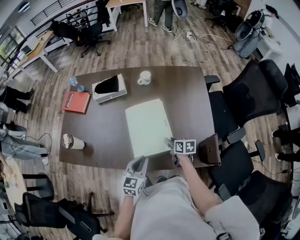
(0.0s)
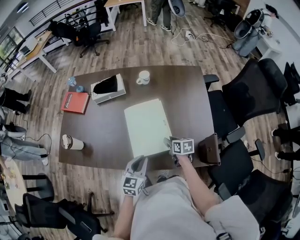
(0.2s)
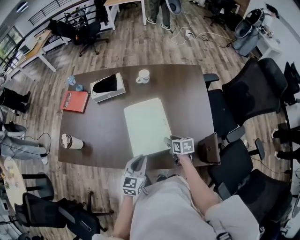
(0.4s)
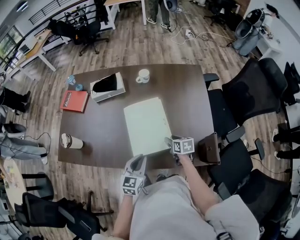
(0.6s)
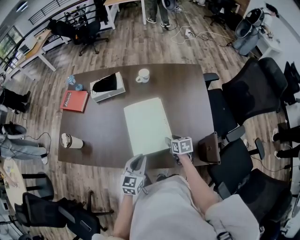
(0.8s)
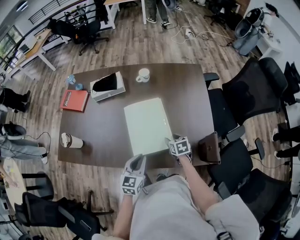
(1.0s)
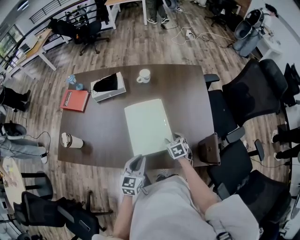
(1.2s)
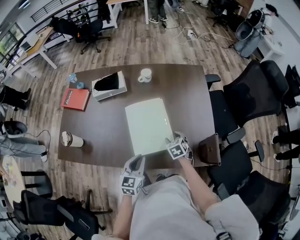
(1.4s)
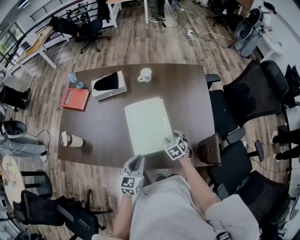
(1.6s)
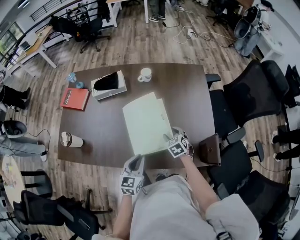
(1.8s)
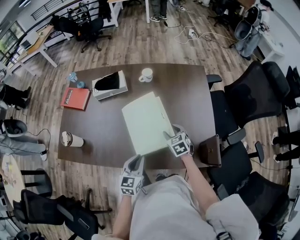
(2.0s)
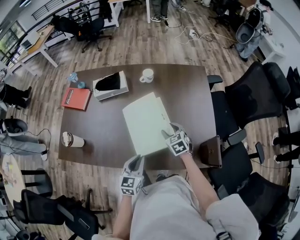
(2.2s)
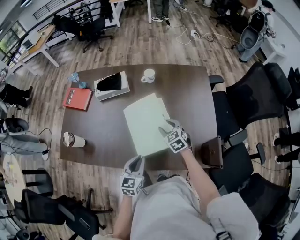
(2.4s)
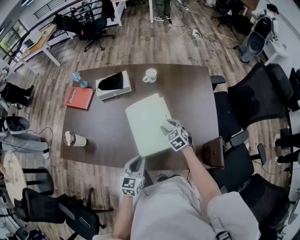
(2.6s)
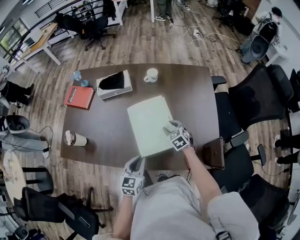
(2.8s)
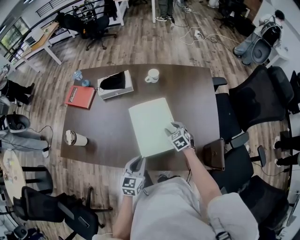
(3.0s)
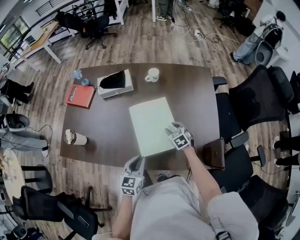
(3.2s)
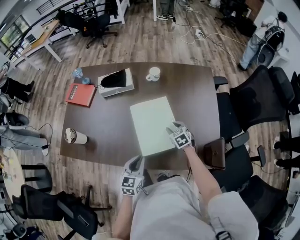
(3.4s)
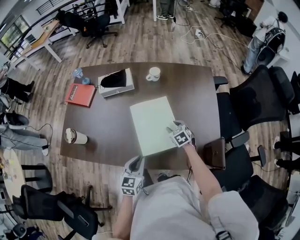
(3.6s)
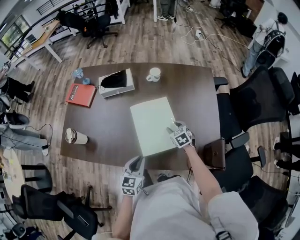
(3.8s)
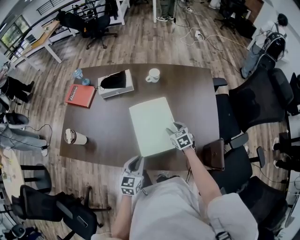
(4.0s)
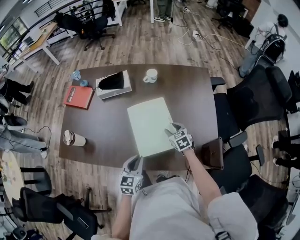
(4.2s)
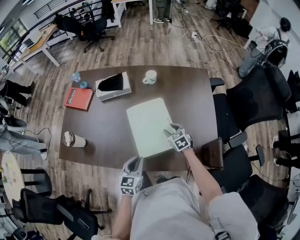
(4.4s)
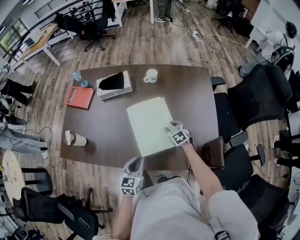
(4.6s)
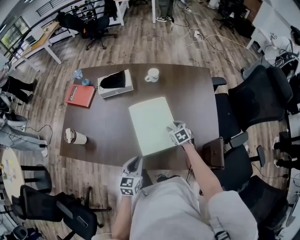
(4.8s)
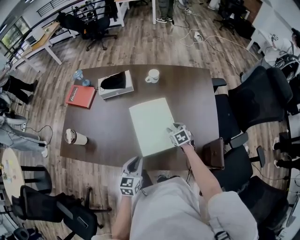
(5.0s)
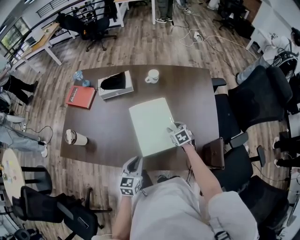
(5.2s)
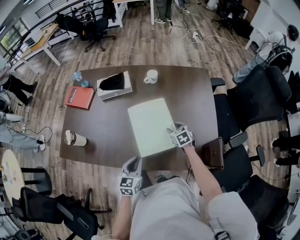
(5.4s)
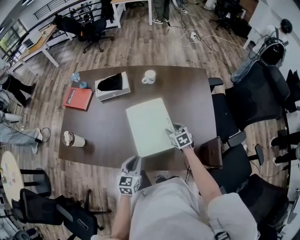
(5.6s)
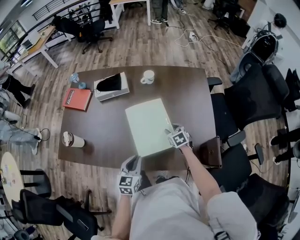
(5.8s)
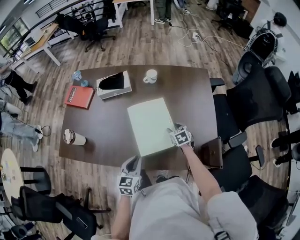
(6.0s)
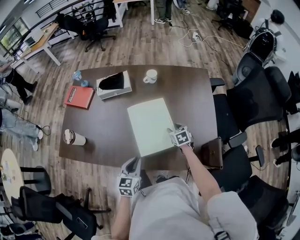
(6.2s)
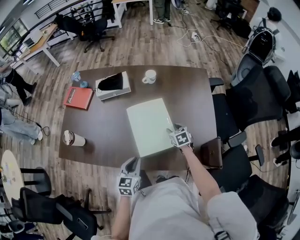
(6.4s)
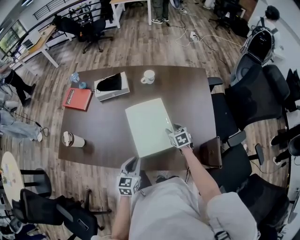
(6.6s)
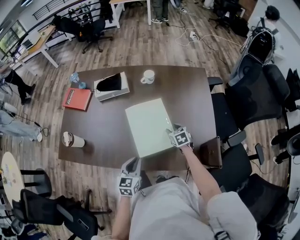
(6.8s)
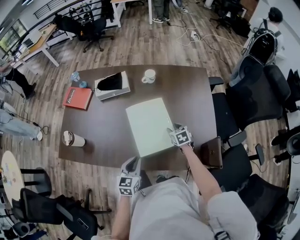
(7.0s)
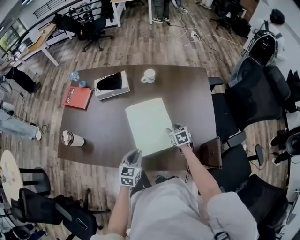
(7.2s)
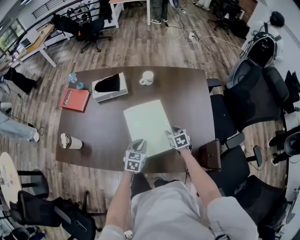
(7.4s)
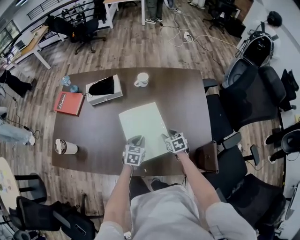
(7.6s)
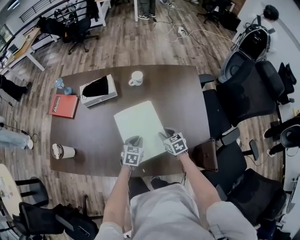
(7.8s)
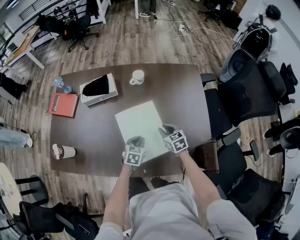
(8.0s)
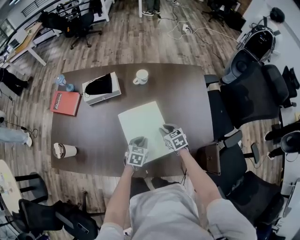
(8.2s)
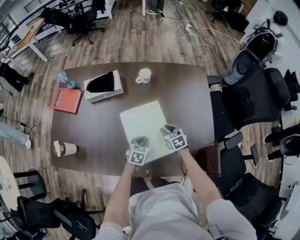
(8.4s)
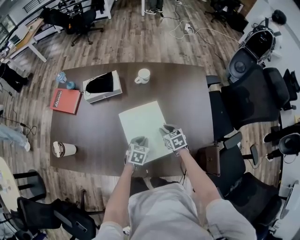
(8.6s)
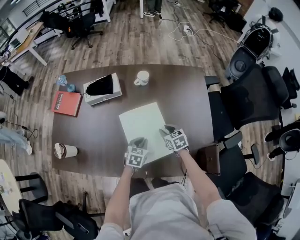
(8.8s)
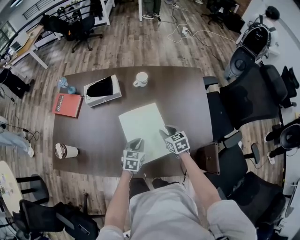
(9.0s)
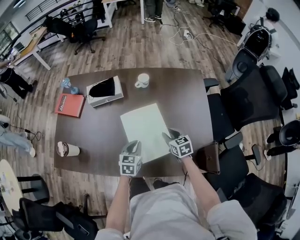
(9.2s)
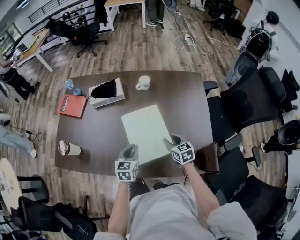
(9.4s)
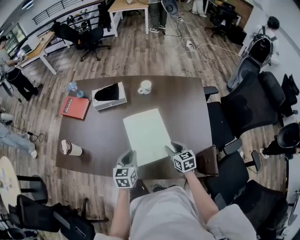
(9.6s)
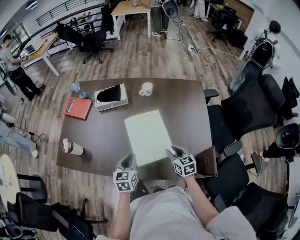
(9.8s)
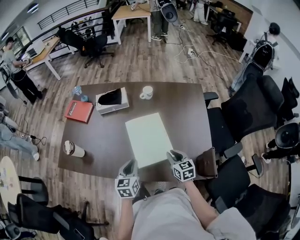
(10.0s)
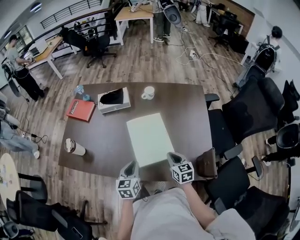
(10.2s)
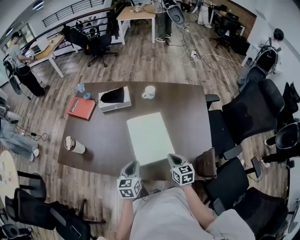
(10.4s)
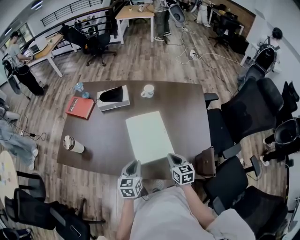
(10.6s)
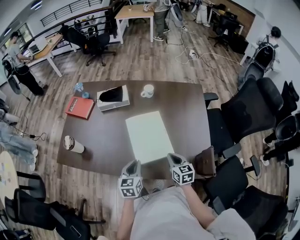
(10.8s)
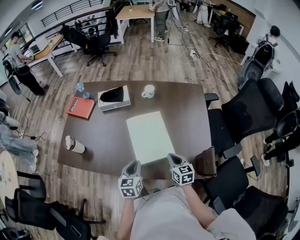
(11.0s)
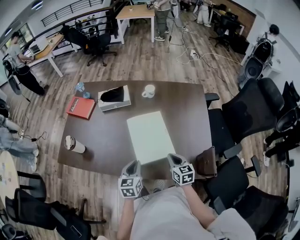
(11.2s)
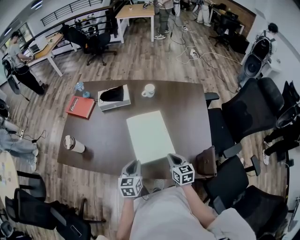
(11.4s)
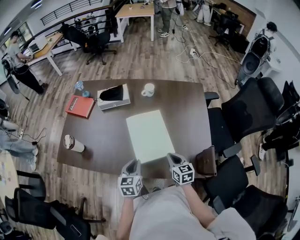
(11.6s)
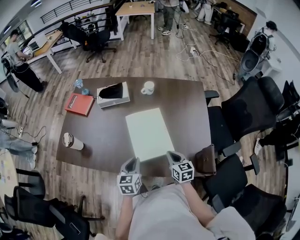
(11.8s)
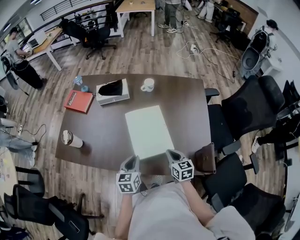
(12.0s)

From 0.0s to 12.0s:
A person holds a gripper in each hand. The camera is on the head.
From 0.0s to 1.6s: The right gripper rotates around the line of its fingers by about 50 degrees, counterclockwise from behind, and opens up.
From 1.6s to 3.0s: The right gripper travels forward by about 5 cm.
From 3.0s to 6.0s: The grippers move only a little.
From 6.0s to 7.6s: The left gripper shifts roughly 20 cm forward, downward and to the right.
From 7.6s to 9.0s: The right gripper moves some 5 cm.
From 9.0s to 10.4s: The left gripper goes about 15 cm backward, upward and to the left, and changes its angle by some 20 degrees; the right gripper shifts approximately 15 cm backward and upward, and closes up.
From 10.4s to 12.0s: Neither gripper changes place.

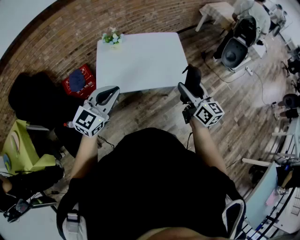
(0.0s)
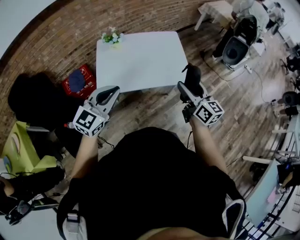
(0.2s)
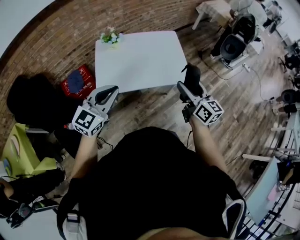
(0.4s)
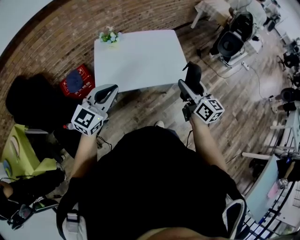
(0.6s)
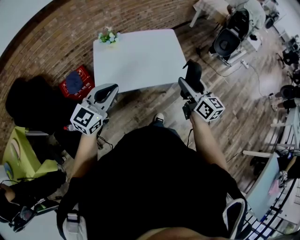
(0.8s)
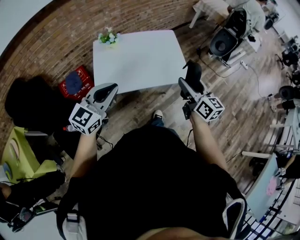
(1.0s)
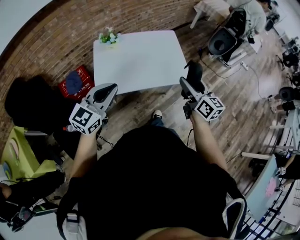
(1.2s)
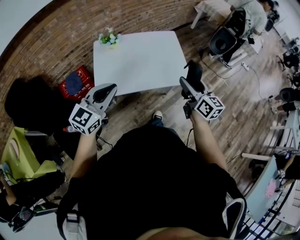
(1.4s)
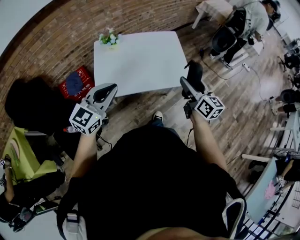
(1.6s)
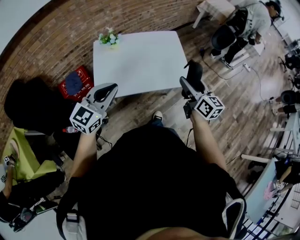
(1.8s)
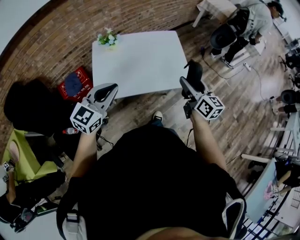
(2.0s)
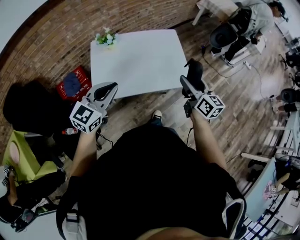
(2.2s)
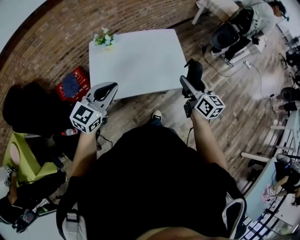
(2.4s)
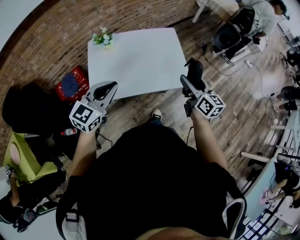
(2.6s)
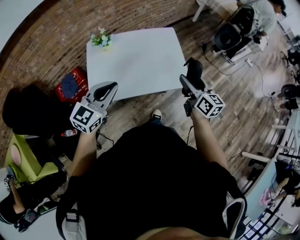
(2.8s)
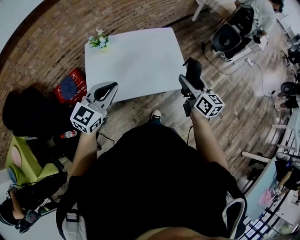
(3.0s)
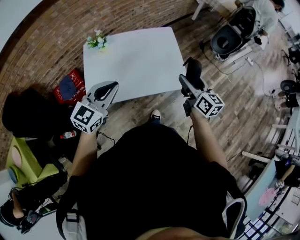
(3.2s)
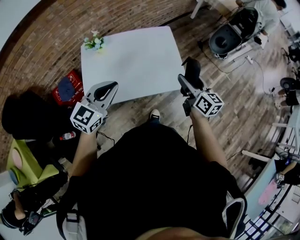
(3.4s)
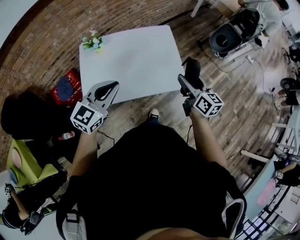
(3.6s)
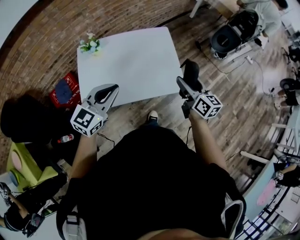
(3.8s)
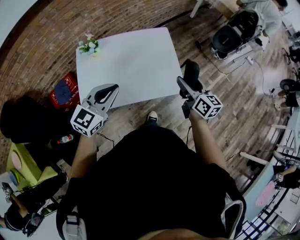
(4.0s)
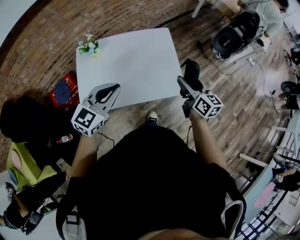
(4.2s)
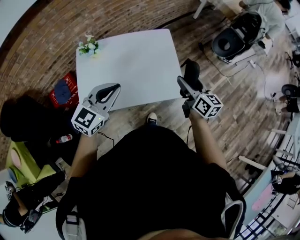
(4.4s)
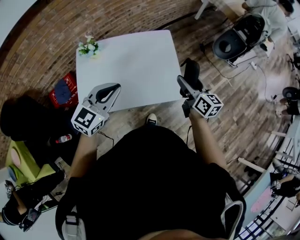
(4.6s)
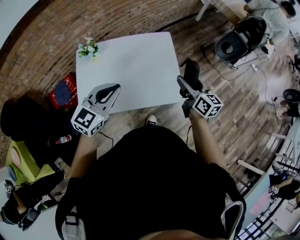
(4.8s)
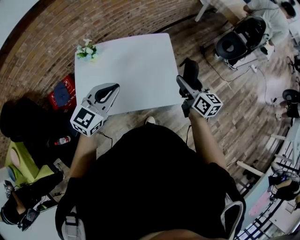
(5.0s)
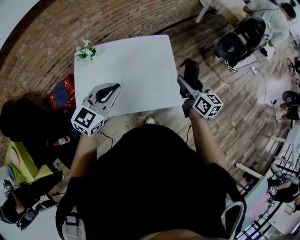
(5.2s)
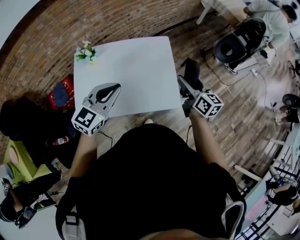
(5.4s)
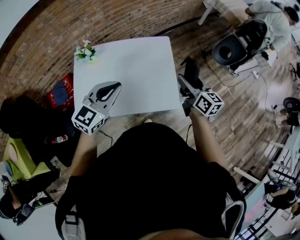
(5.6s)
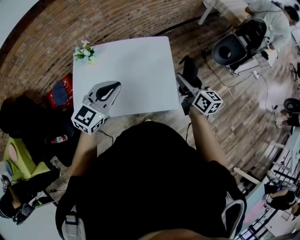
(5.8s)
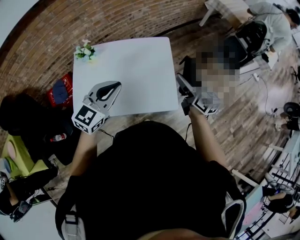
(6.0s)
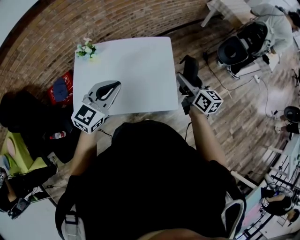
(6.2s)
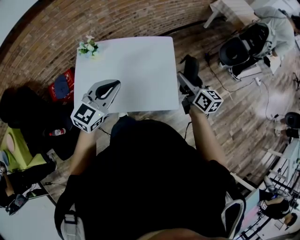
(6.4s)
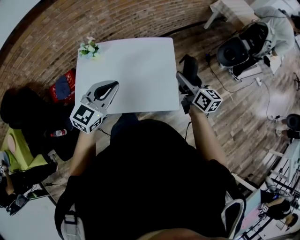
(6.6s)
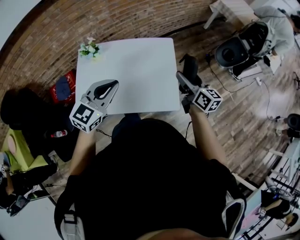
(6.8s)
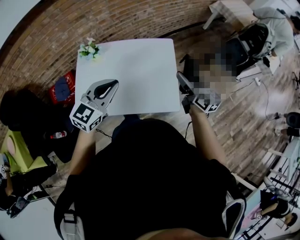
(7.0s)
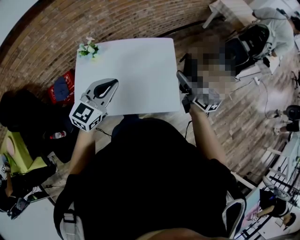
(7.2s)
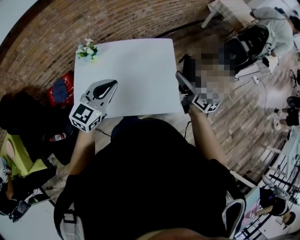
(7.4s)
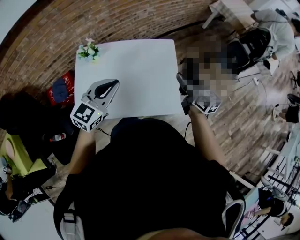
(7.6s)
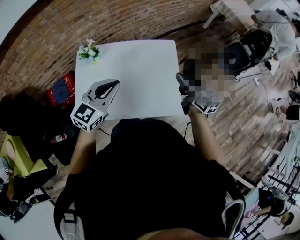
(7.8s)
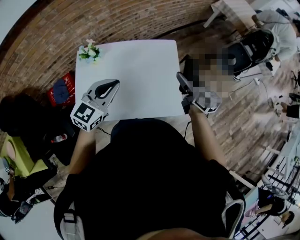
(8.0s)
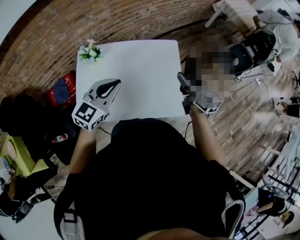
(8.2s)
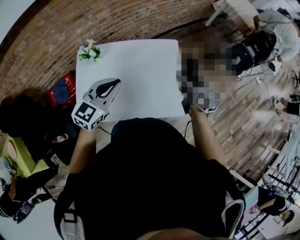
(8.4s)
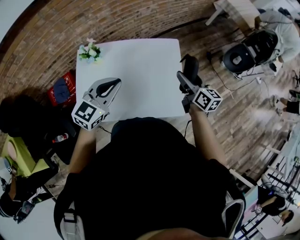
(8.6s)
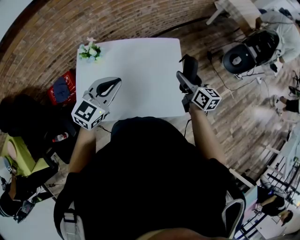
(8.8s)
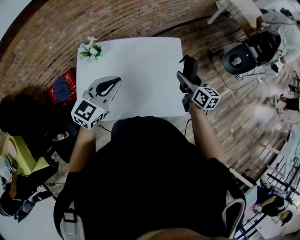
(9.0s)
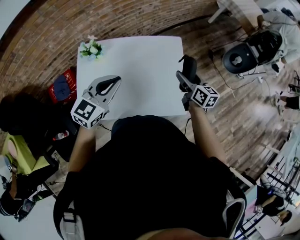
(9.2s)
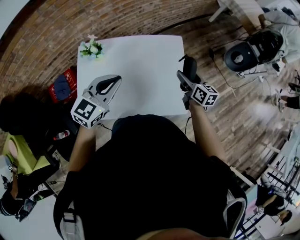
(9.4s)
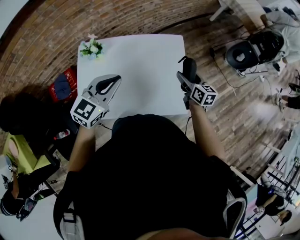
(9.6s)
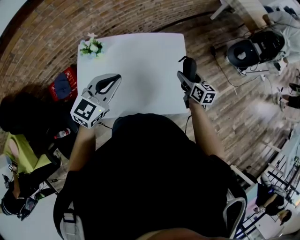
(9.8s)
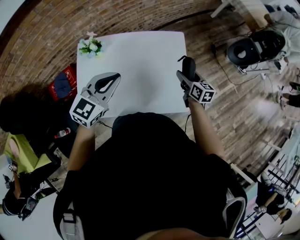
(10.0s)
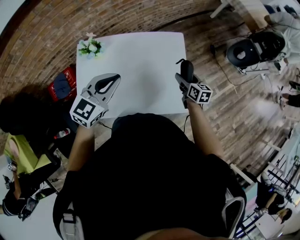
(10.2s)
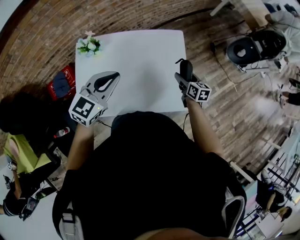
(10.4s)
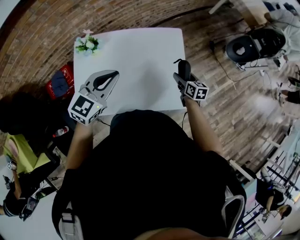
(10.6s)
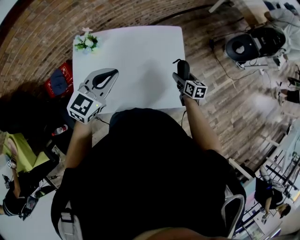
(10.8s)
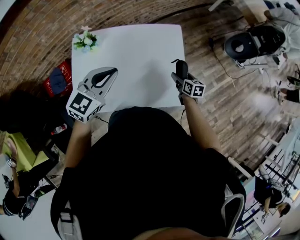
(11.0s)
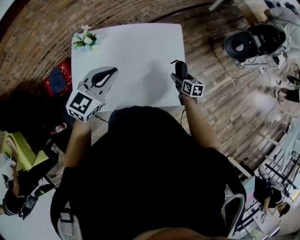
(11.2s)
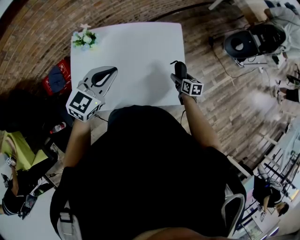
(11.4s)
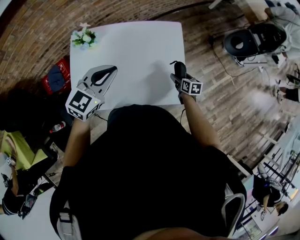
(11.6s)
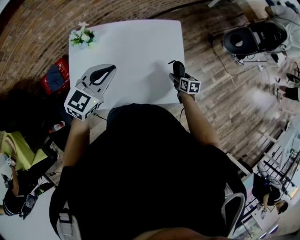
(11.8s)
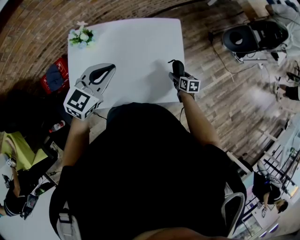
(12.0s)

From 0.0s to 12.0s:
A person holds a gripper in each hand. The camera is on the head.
From 0.0s to 1.6s: The right gripper moves forward, some 5 cm, while the left gripper moves roughly 5 cm.
From 1.6s to 3.0s: The two grippers go some 10 cm forward.
From 3.0s to 4.4s: The right gripper shifts approximately 10 cm forward. Meanwhile the left gripper goes about 10 cm forward and to the right.
From 4.4s to 6.0s: The right gripper is displaced forward by some 10 cm. The left gripper moves forward and to the right, approximately 10 cm.
From 6.0s to 7.6s: The right gripper shifts by about 5 cm, while the left gripper is displaced to the left by some 5 cm.
From 7.6s to 9.0s: The right gripper moves downward, some 5 cm. The left gripper moves approximately 5 cm.
From 9.0s to 10.4s: The right gripper goes approximately 15 cm downward.
From 10.4s to 12.0s: The right gripper travels downward by about 10 cm.
